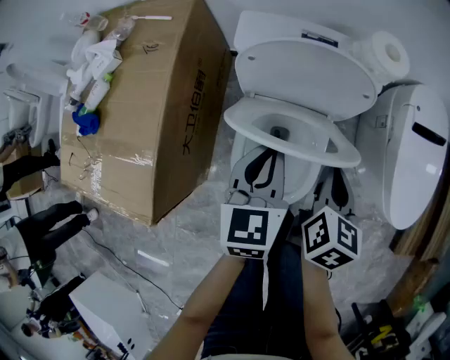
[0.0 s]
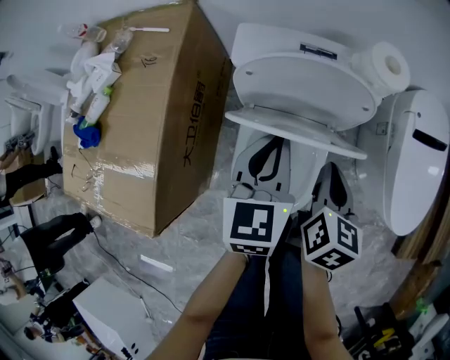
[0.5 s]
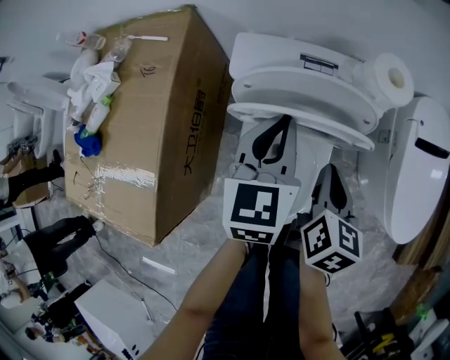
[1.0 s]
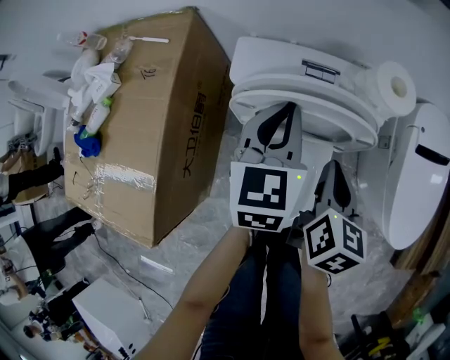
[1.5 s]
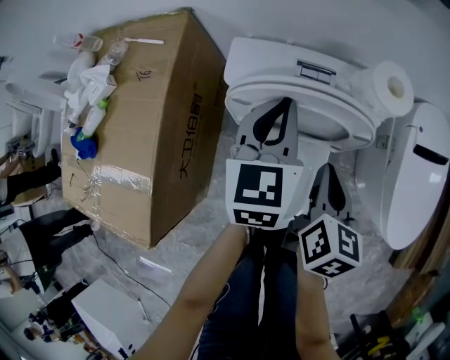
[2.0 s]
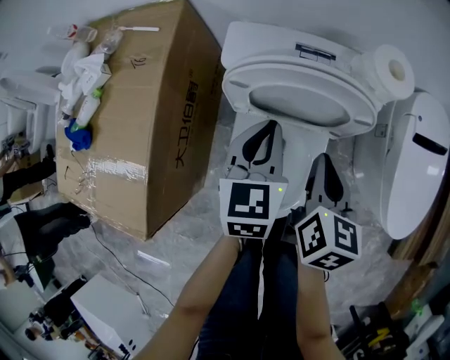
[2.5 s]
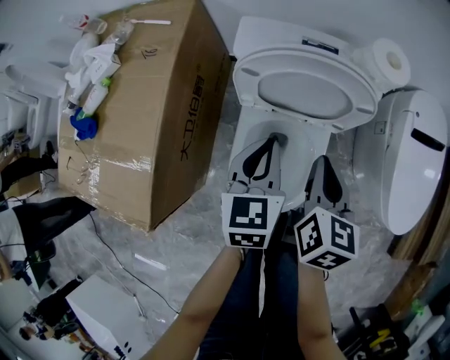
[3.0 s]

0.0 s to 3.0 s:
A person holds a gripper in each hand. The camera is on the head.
0.0 to 1.5 s: The right gripper moves forward, roughly 10 cm; the left gripper goes about 15 cm forward.
1.5 to 3.0 s: The left gripper moves backward and downward, about 15 cm; the right gripper moves backward, roughly 5 cm.

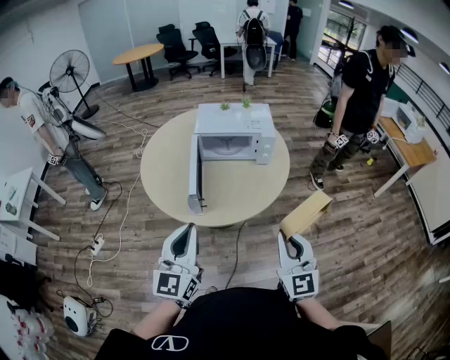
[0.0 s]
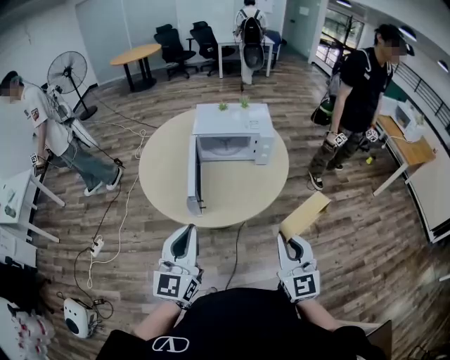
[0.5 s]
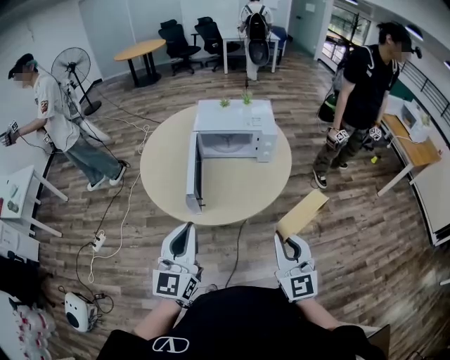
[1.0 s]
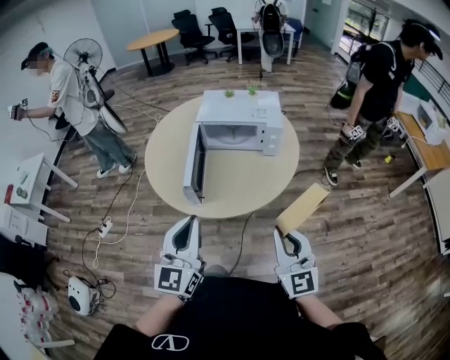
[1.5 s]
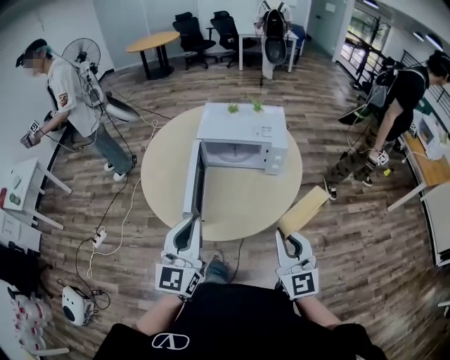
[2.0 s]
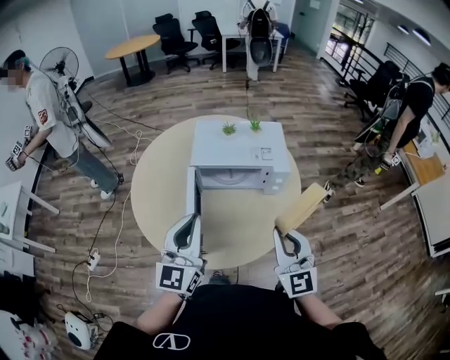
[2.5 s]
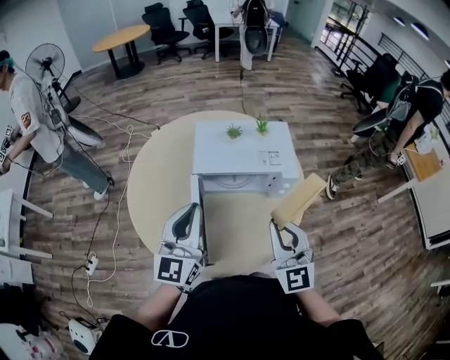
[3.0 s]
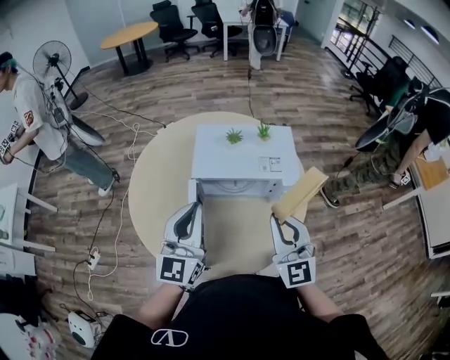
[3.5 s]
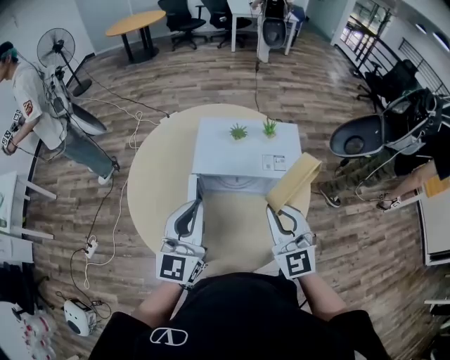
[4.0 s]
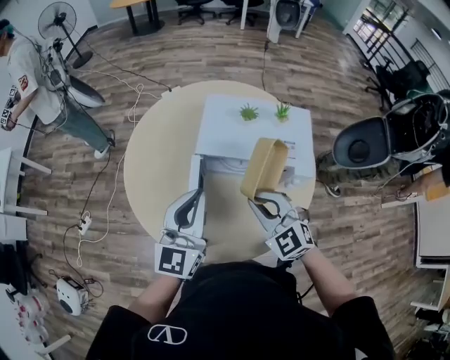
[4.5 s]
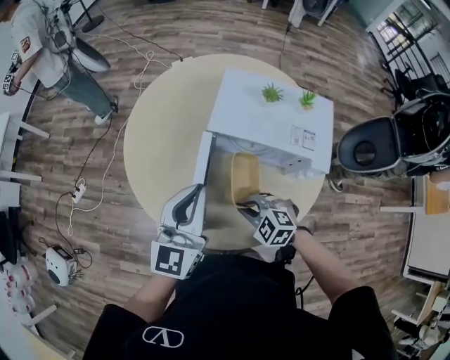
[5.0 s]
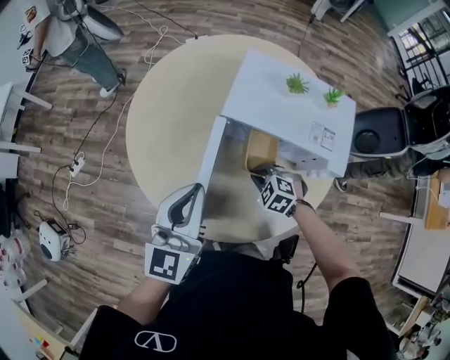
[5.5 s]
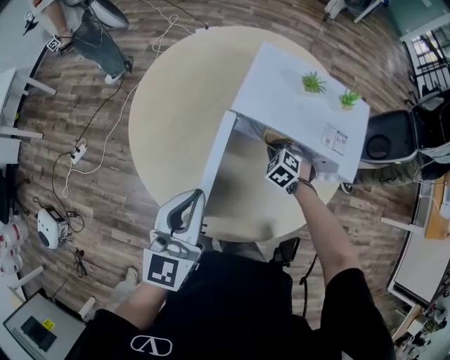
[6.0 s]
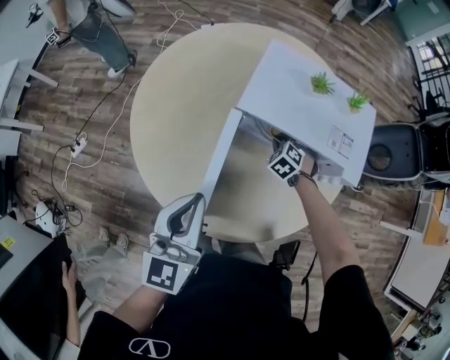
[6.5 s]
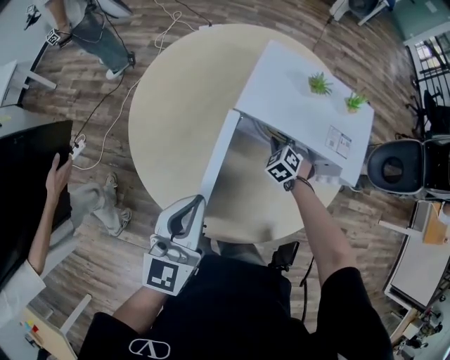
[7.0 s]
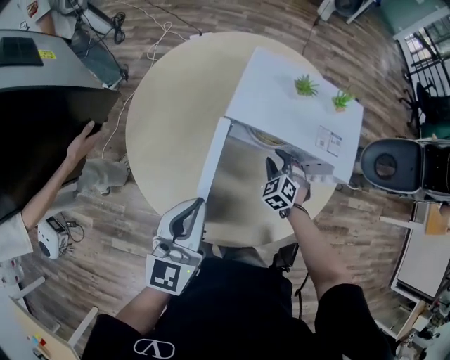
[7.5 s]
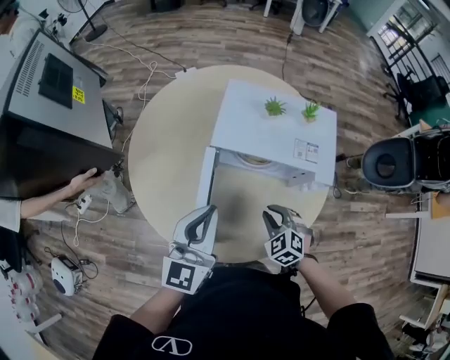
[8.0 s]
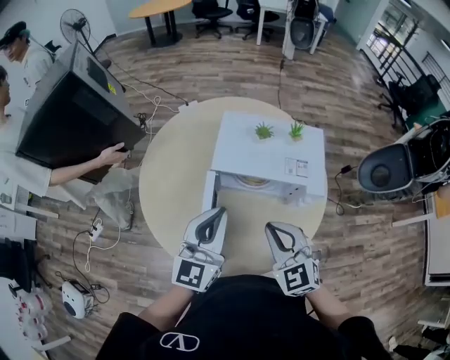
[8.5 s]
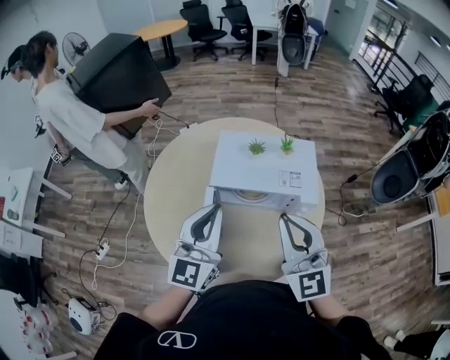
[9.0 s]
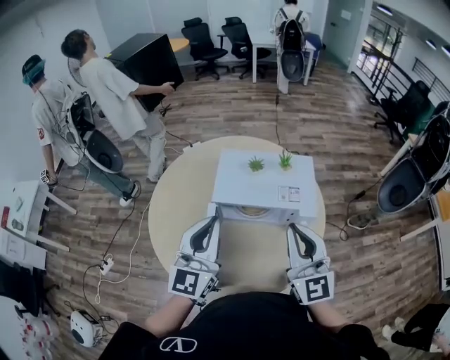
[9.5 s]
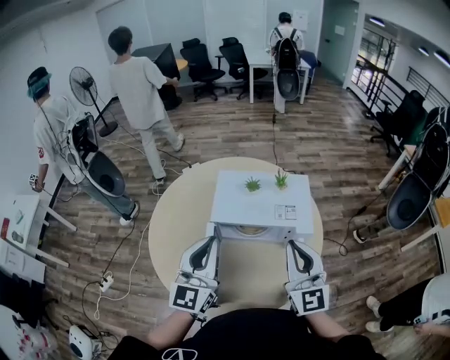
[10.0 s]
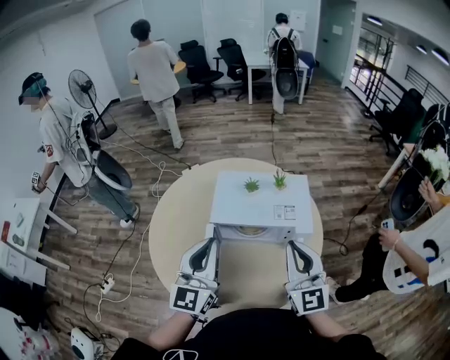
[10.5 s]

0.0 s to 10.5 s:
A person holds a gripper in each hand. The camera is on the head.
0.0 to 2.0 s: Both grippers travel together forward, approximately 15 cm.
2.0 to 4.0 s: Both grippers travel together forward, some 30 cm.
4.0 to 6.5 s: The left gripper heads downward, covering approximately 15 cm, and changes its angle by roughly 20 degrees; the right gripper travels downward by roughly 40 cm, and points its fingers roughly 60 degrees further downward.
6.5 to 8.5 s: The left gripper goes about 15 cm upward and to the right, while the right gripper heads upward and backward, covering approximately 40 cm, angles its fingers upward, by approximately 40 degrees, and opens and closes again.
8.5 to 10.5 s: The right gripper is displaced upward and to the right by about 15 cm, and tilts its fingers about 30 degrees upward; the left gripper travels upward by roughly 10 cm.

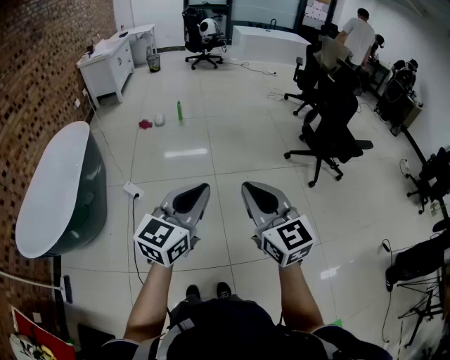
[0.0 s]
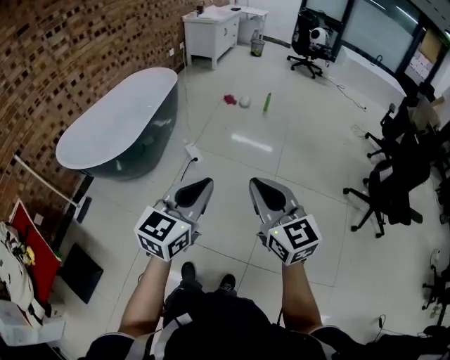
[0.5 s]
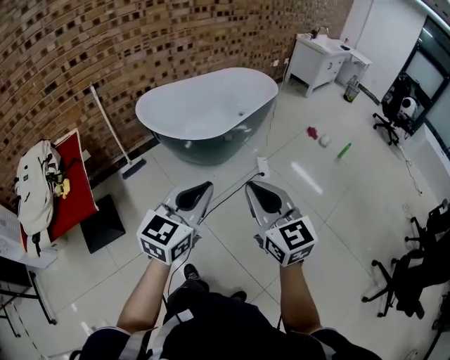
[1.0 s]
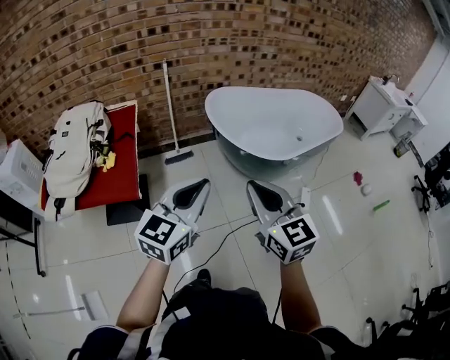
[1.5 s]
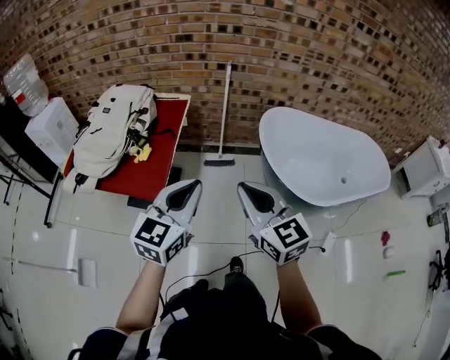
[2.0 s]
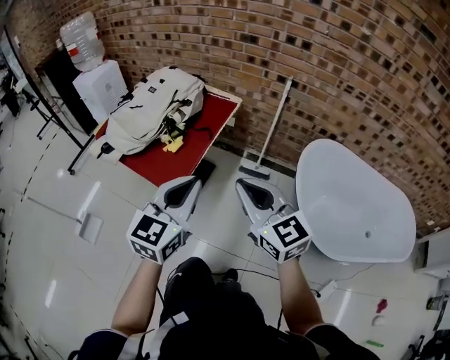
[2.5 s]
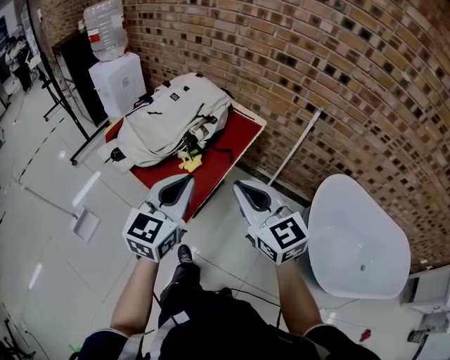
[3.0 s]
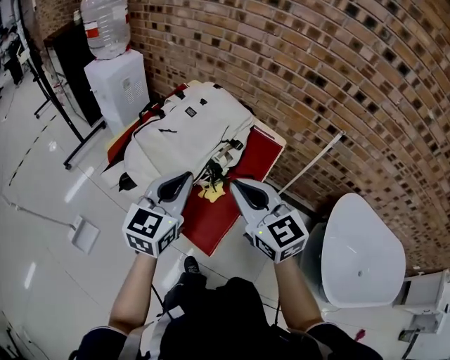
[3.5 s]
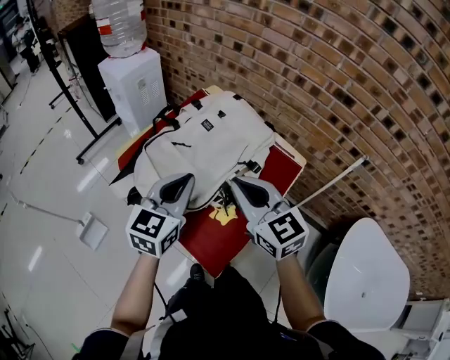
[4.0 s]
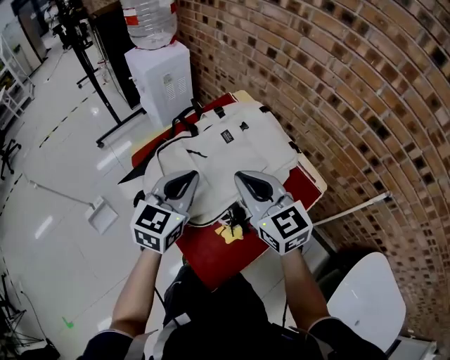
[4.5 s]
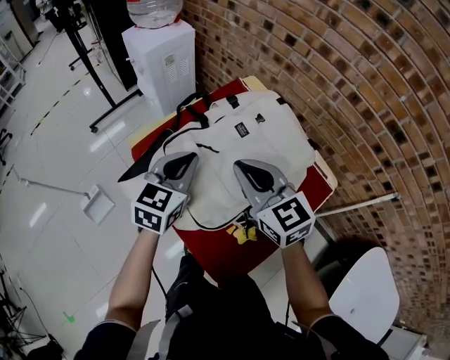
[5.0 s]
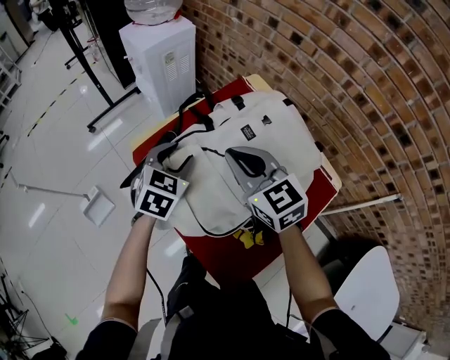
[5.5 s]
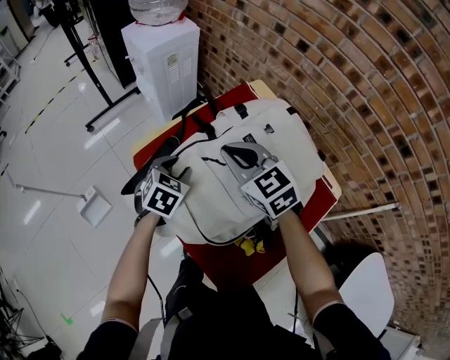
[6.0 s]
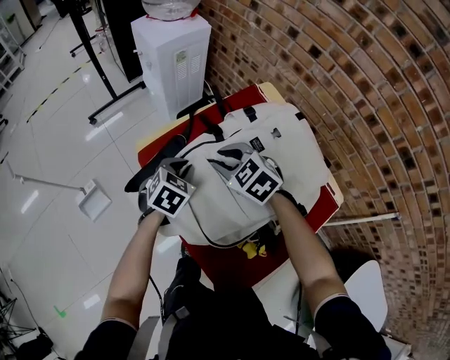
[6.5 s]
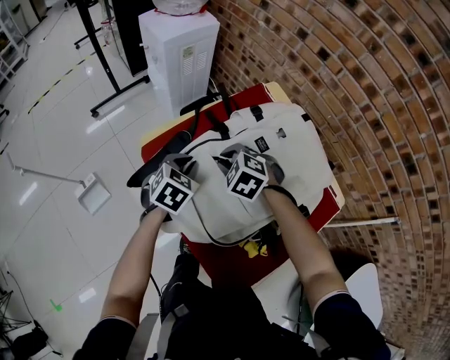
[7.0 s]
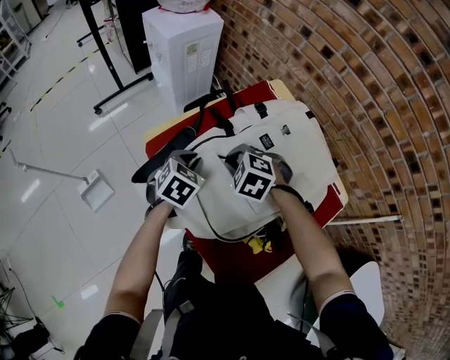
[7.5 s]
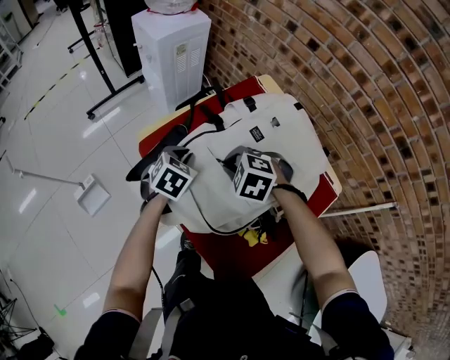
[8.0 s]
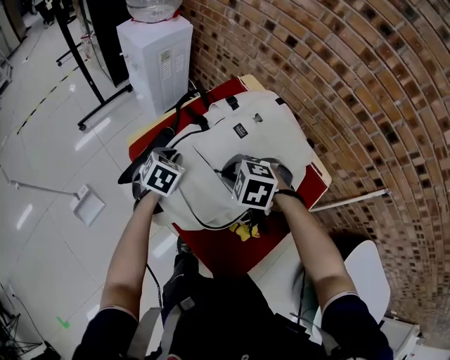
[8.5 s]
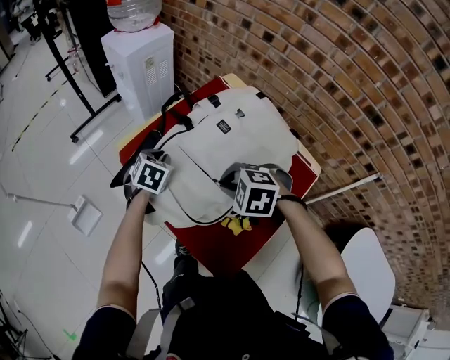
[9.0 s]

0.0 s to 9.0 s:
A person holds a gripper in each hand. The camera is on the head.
0.0 to 2.0 s: The two grippers travel together, about 80 cm. The right gripper changes its angle by about 100 degrees; the left gripper turns by about 100 degrees.
2.0 to 4.5 s: Both grippers are carried some 50 cm. The right gripper swivels about 50 degrees, while the left gripper swivels about 50 degrees.
4.5 to 7.0 s: The grippers both shift downward, forward and to the left by roughly 25 cm. The right gripper tips its fingers downward by about 50 degrees; the left gripper tilts its fingers about 30 degrees downward, and opens, then closes again.
7.0 to 9.0 s: The right gripper travels backward and upward by roughly 15 cm.

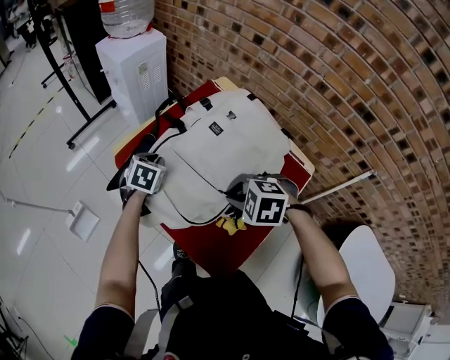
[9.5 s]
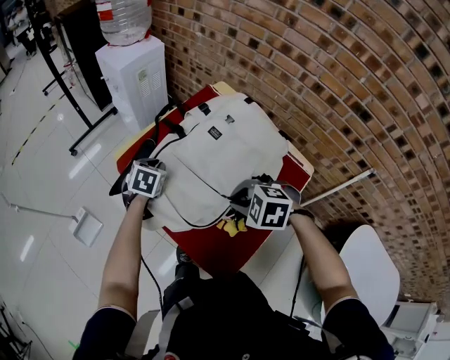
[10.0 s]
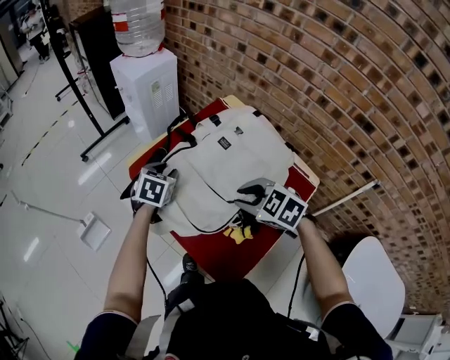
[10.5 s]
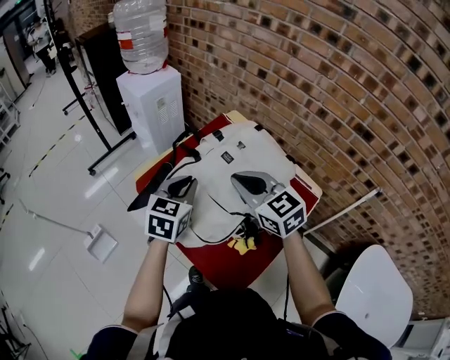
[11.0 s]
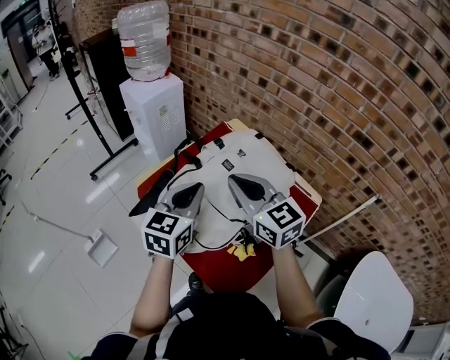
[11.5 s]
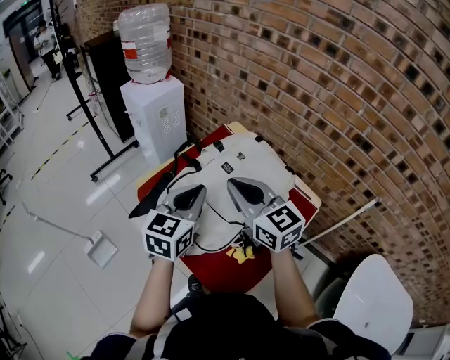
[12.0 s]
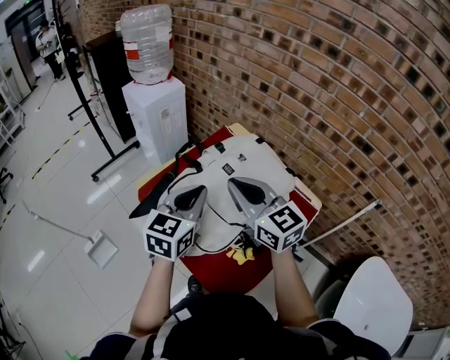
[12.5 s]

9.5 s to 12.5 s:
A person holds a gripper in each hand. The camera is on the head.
9.5 to 11.0 s: The right gripper is displaced upward and forward by about 15 cm, and tilts its fingers approximately 50 degrees upward; the left gripper heads upward and backward, covering roughly 20 cm, turns by about 30 degrees, and opens, then closes again.
11.0 to 12.5 s: Both grippers move upward, roughly 5 cm.
